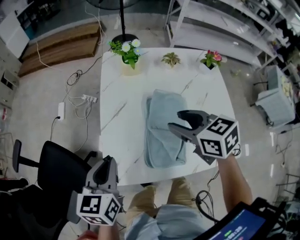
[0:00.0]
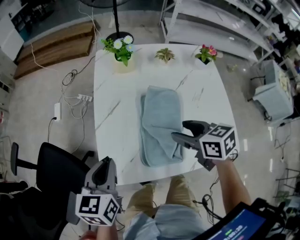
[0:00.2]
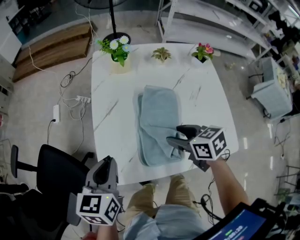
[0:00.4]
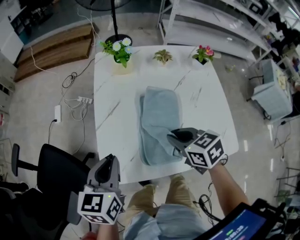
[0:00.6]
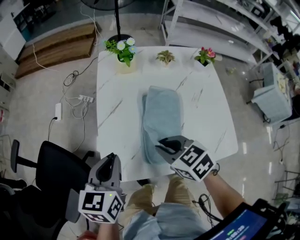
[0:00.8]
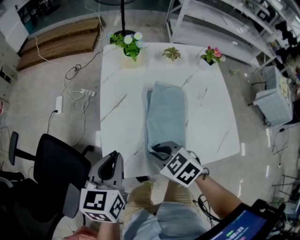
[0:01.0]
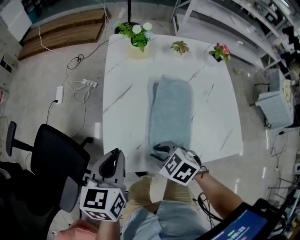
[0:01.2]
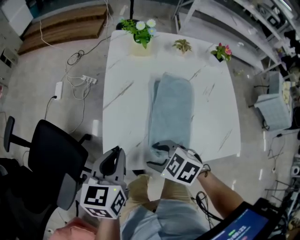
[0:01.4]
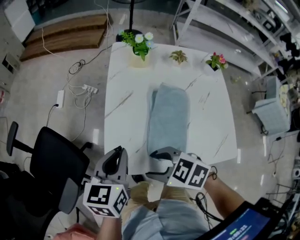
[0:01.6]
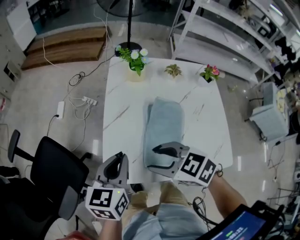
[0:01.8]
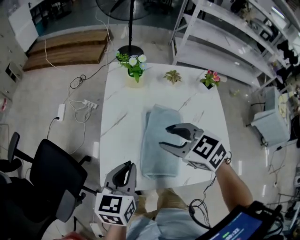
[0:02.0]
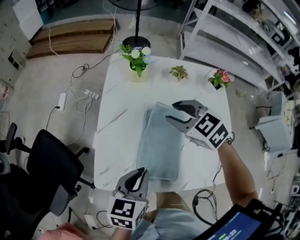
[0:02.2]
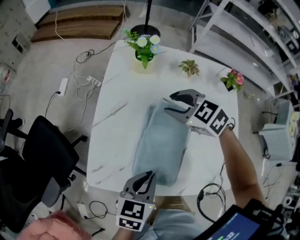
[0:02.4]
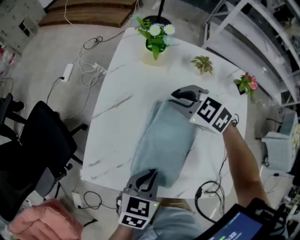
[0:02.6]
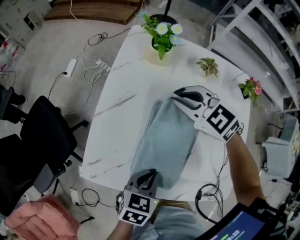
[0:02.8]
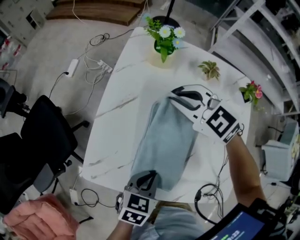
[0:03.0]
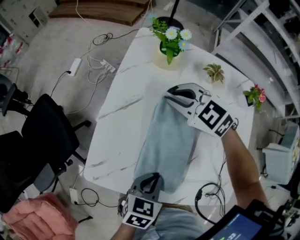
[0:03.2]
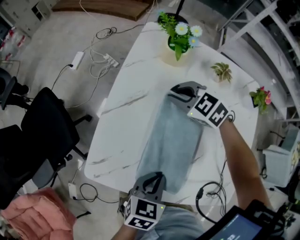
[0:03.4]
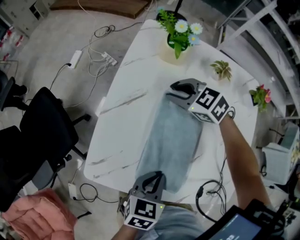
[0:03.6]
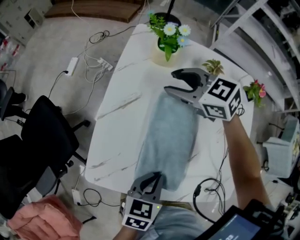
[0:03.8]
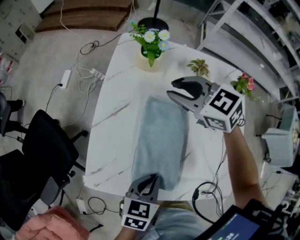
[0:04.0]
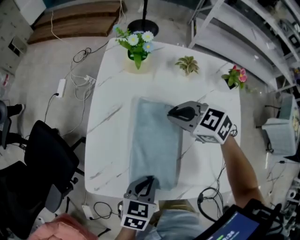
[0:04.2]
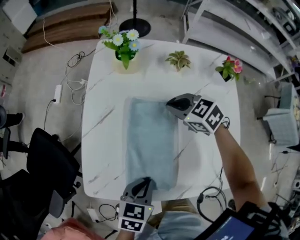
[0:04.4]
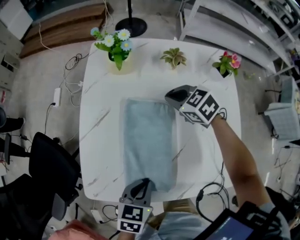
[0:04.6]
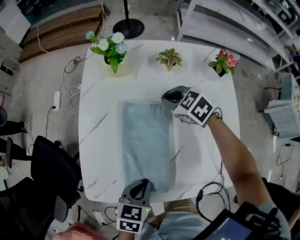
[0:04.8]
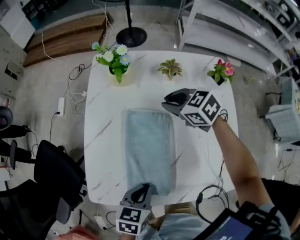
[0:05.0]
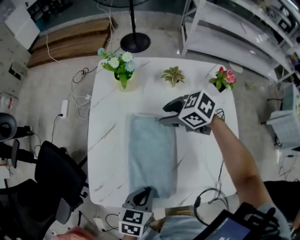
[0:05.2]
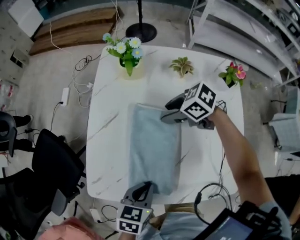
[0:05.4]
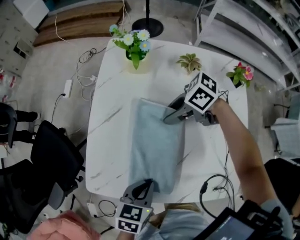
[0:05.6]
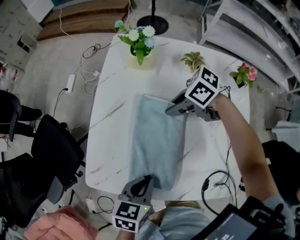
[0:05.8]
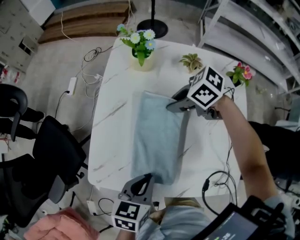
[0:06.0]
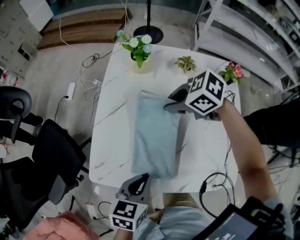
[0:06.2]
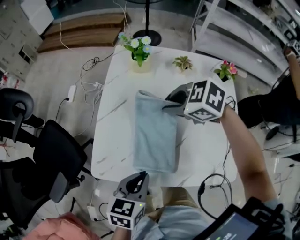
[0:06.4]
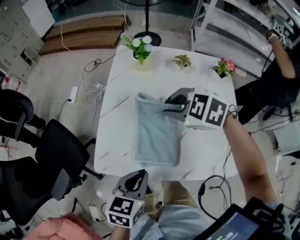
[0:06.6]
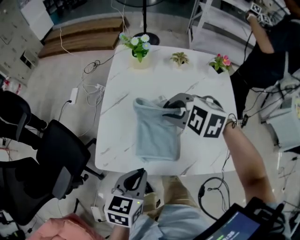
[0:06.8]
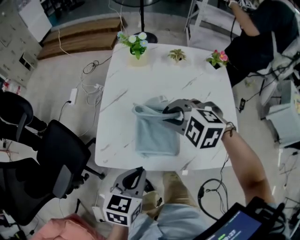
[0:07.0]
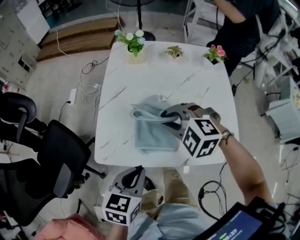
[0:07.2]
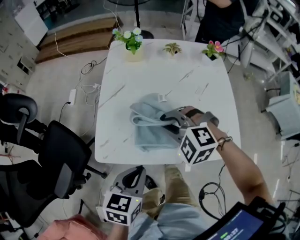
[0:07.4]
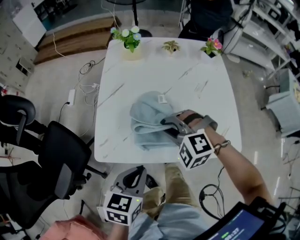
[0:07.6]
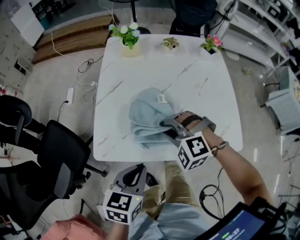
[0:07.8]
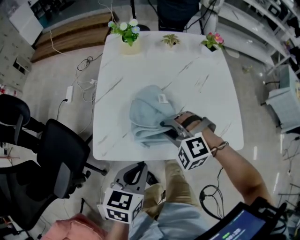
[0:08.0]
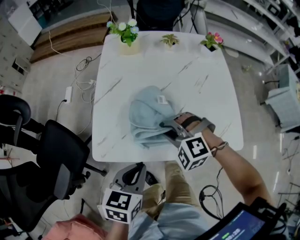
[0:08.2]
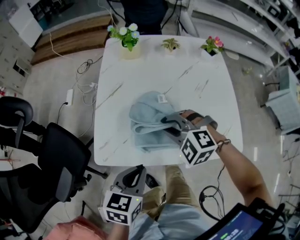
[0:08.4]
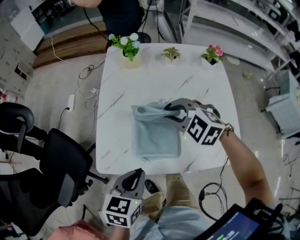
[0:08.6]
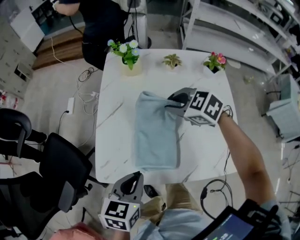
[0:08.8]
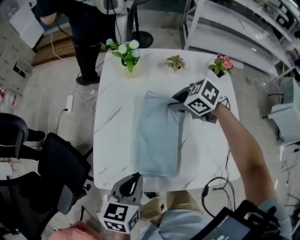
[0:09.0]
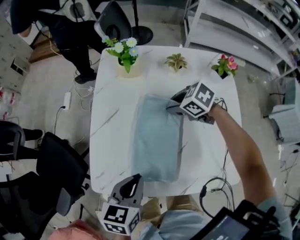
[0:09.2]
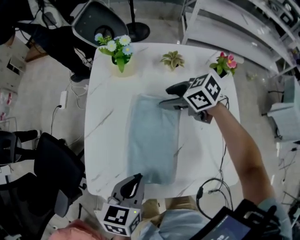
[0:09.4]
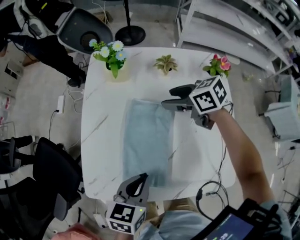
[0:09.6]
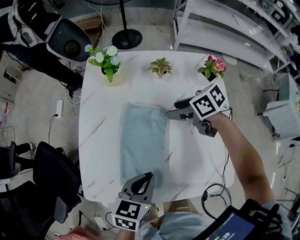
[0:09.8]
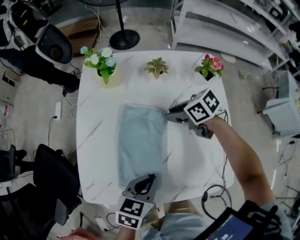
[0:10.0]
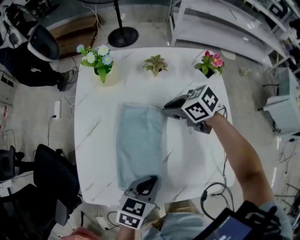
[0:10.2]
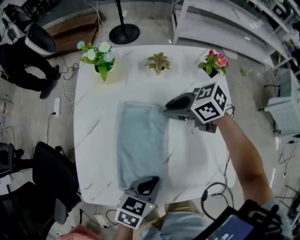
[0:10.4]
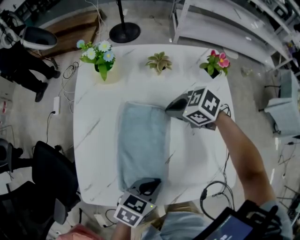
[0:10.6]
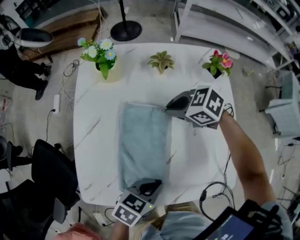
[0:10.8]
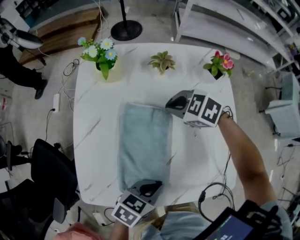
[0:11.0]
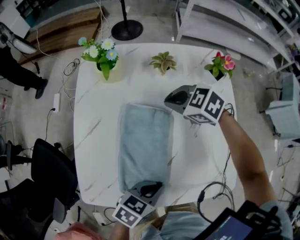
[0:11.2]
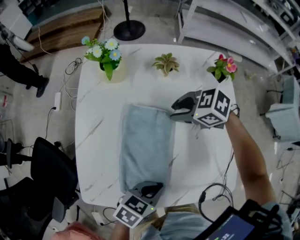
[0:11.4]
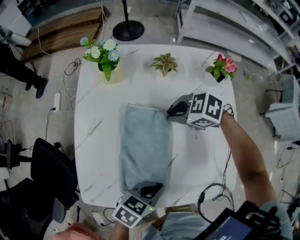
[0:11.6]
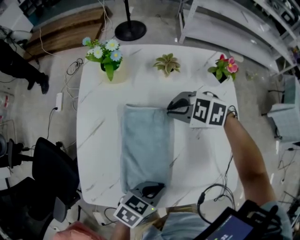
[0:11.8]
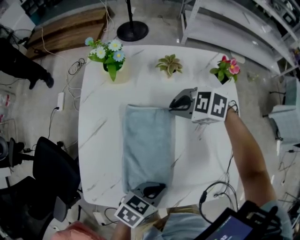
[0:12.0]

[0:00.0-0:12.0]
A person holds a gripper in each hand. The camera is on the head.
0:00.0 to 0:01.6: The right gripper goes approximately 20 cm to the left and backward, turns by roughly 40 degrees, and closes, then opens again.
0:01.6 to 0:03.0: The right gripper heads forward and to the right, covering roughly 30 cm, turns by roughly 30 degrees, and closes its fingers. Meanwhile the left gripper goes roughly 20 cm to the right and downward, and changes its angle by roughly 20 degrees.
0:03.0 to 0:04.4: The right gripper travels to the right and downward by approximately 15 cm, changes its angle by about 30 degrees, and opens and closes again.
0:04.4 to 0:06.0: The right gripper changes place by roughly 5 cm, turns by roughly 30 degrees, and opens, then closes again.
0:06.0 to 0:07.6: The right gripper goes upward and returns, about 10 cm each way, and swivels roughly 70 degrees; the left gripper changes place by approximately 10 cm.
0:07.6 to 0:09.0: The right gripper is displaced forward and to the right by about 20 cm, and twists approximately 50 degrees clockwise, seen from behind; the left gripper is displaced forward by about 10 cm.
0:09.0 to 0:10.4: The left gripper changes place by approximately 15 cm, and turns by roughly 20 degrees, while the right gripper goes up and down, approximately 5 cm each way, reversing 2 times, and opens and closes again.
0:10.4 to 0:12.0: The right gripper rotates about 40 degrees.

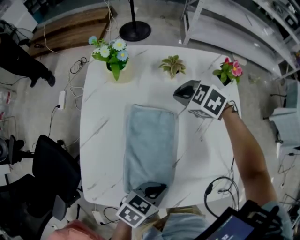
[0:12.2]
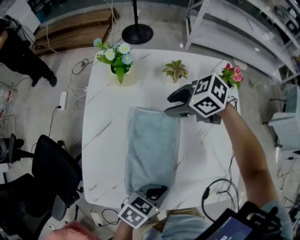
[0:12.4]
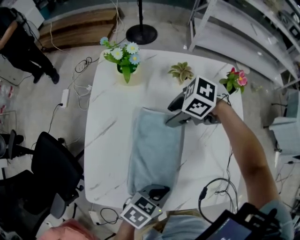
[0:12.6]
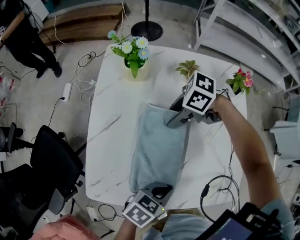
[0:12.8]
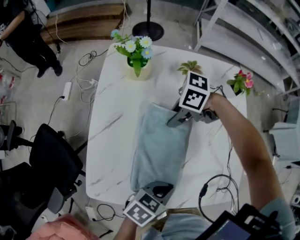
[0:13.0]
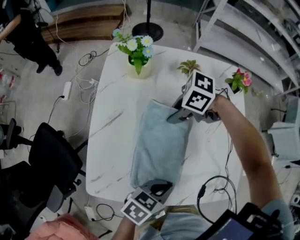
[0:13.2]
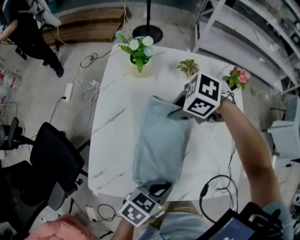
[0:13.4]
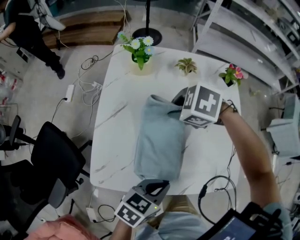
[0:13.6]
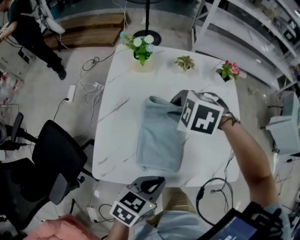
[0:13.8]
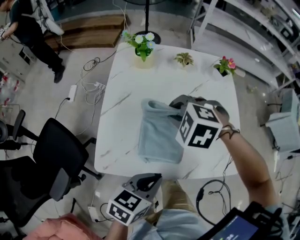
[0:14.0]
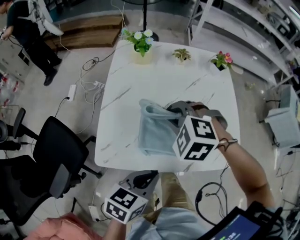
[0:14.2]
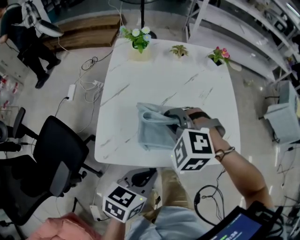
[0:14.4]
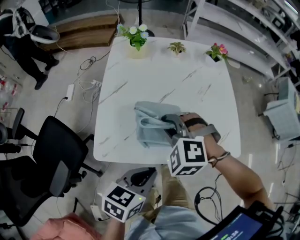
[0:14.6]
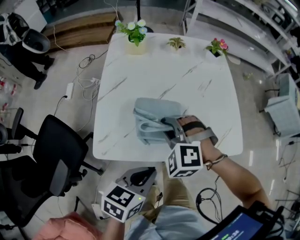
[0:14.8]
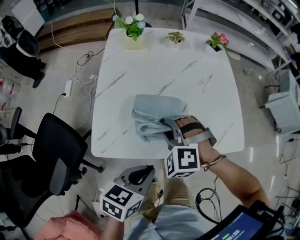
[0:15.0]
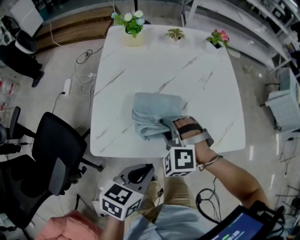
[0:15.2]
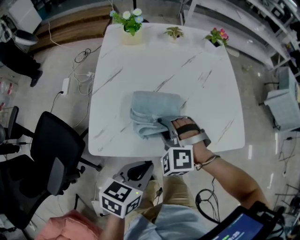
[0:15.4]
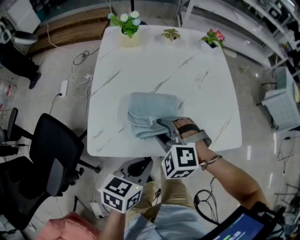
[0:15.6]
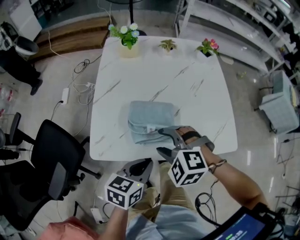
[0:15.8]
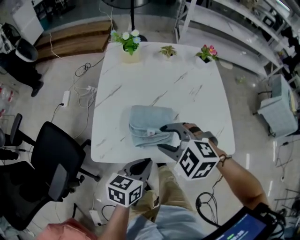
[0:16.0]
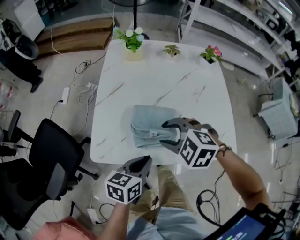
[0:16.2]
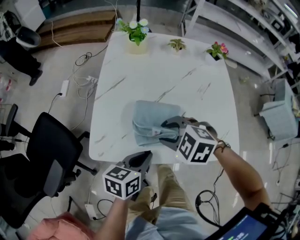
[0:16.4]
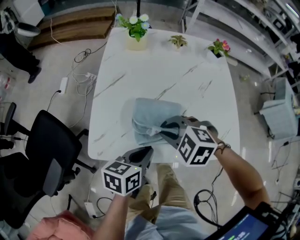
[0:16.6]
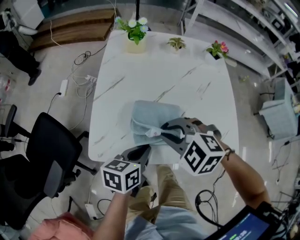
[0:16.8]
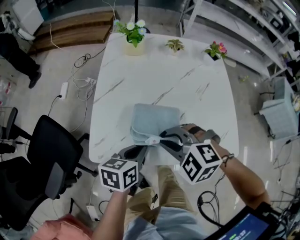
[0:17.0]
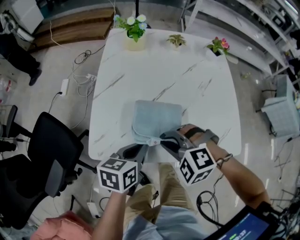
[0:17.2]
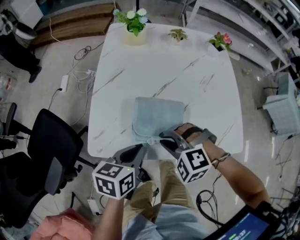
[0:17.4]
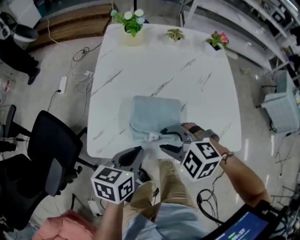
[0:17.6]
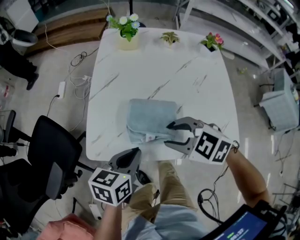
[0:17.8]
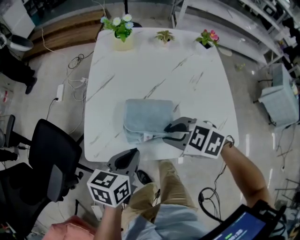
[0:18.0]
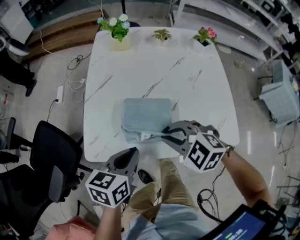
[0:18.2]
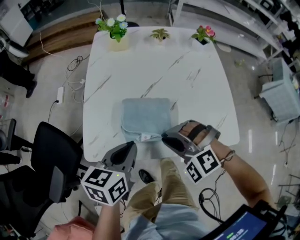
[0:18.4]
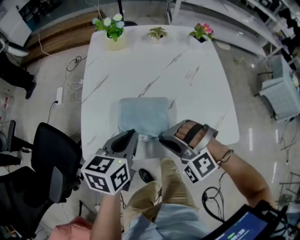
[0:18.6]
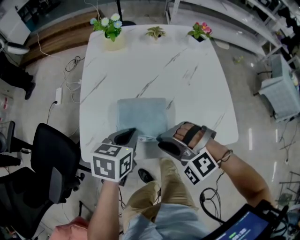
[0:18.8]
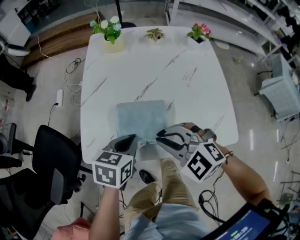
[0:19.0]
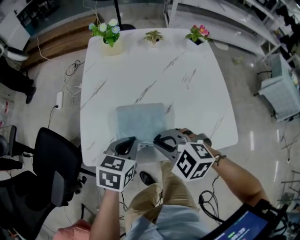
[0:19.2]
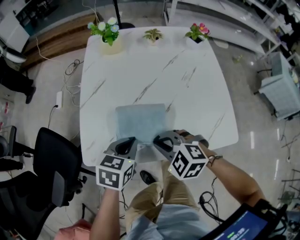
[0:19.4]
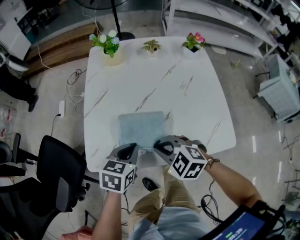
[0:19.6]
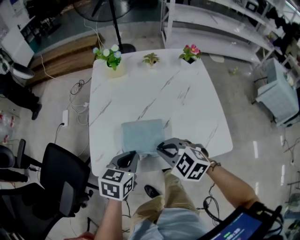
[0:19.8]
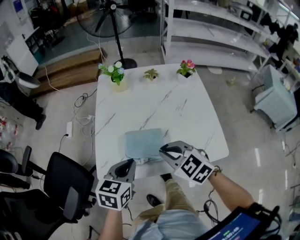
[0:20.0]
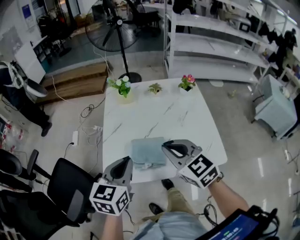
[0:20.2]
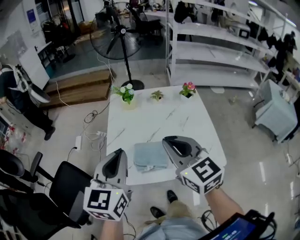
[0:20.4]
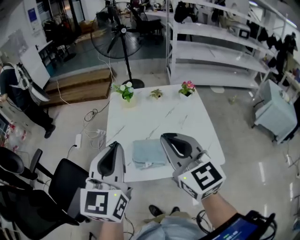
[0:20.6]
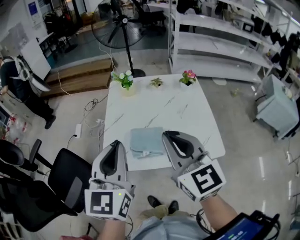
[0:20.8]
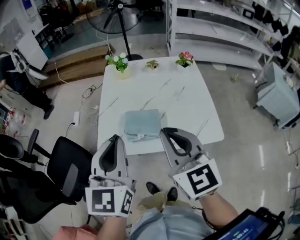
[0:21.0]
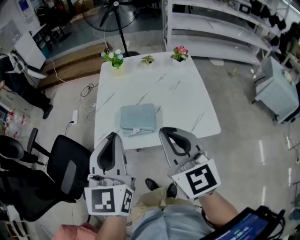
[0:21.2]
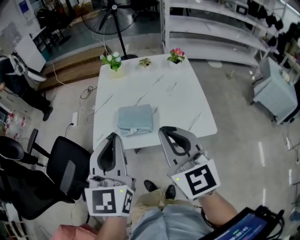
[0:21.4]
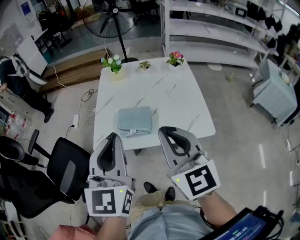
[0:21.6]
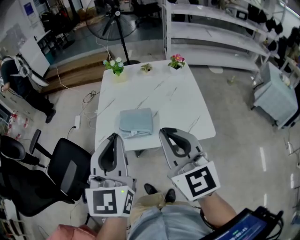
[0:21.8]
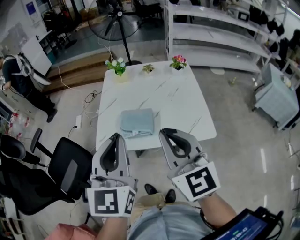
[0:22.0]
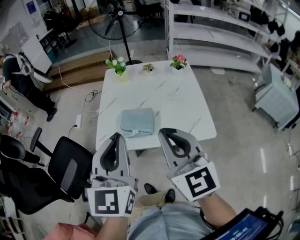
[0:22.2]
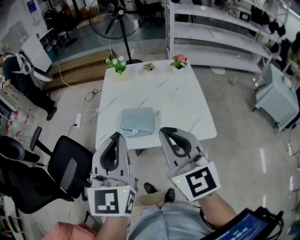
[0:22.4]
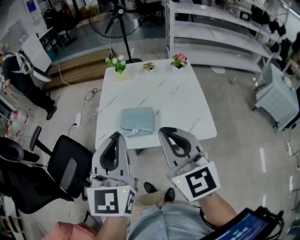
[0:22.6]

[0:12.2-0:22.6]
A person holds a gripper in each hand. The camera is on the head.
0:12.2 to 0:13.6: The left gripper travels upward by approximately 5 cm. Meanwhile the right gripper shifts by some 15 cm, and opens, then closes once more.
0:13.6 to 0:15.2: The right gripper shifts by about 20 cm, and changes its angle by some 50 degrees, while the left gripper changes place by approximately 10 cm.
0:15.2 to 0:16.6: The right gripper reaches roughly 10 cm upward, then returns, turns by some 30 degrees, and opens, then closes once more. Meanwhile the left gripper changes place by about 10 cm.
0:16.6 to 0:18.2: The right gripper moves up and down over approximately 5 cm, changing direction 2 times, and opens, then closes once more.
0:18.2 to 0:19.6: The left gripper shifts by about 5 cm.
0:19.6 to 0:21.2: The grippers both shift upward by approximately 30 cm. The right gripper tips its fingers upward by roughly 40 degrees. Meanwhile the left gripper angles its fingers upward, by roughly 40 degrees.
0:21.2 to 0:22.6: The grippers move only a little.

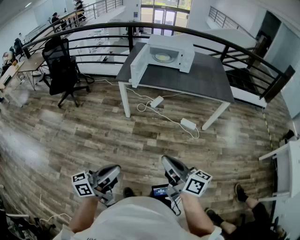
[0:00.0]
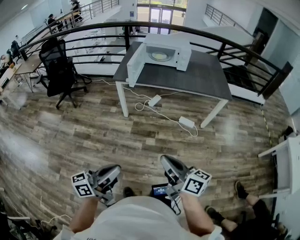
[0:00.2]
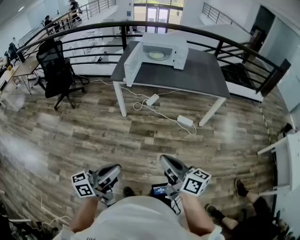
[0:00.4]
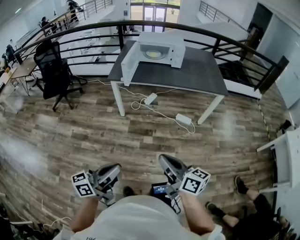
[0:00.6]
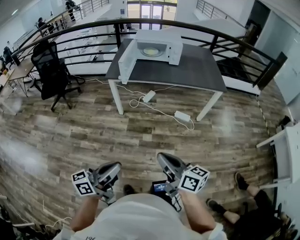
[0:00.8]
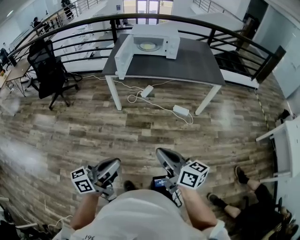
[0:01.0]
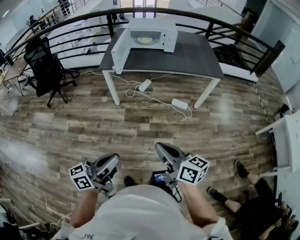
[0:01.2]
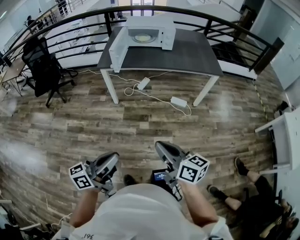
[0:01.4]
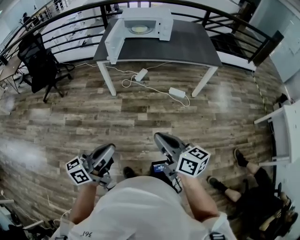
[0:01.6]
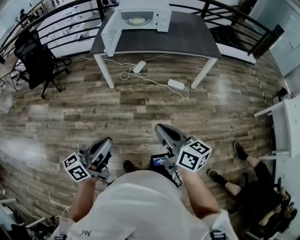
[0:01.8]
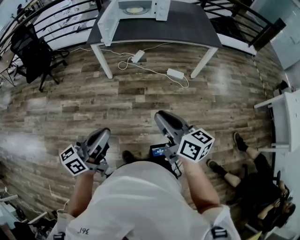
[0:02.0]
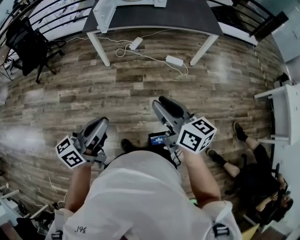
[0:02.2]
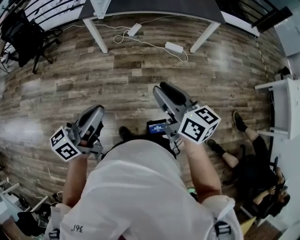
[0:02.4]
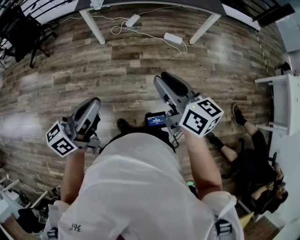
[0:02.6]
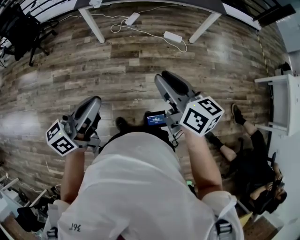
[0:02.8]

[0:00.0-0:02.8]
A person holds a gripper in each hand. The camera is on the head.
0:00.0 to 0:01.4: The grippers stay close to where they were, moving slightly.
0:01.4 to 0:02.8: The right gripper changes place by about 5 cm, and opens.
